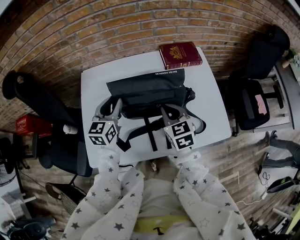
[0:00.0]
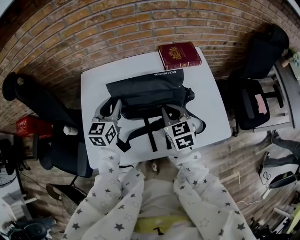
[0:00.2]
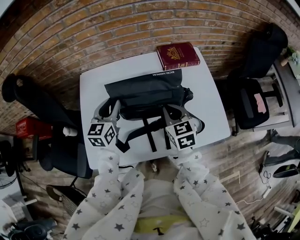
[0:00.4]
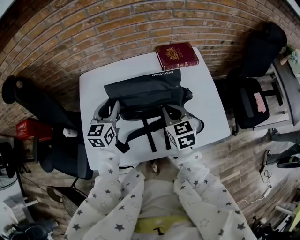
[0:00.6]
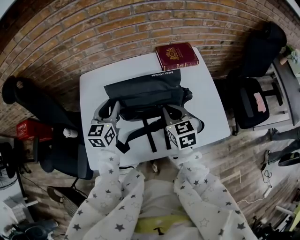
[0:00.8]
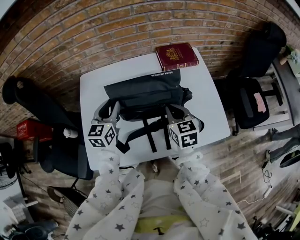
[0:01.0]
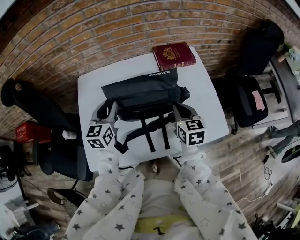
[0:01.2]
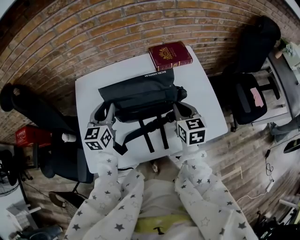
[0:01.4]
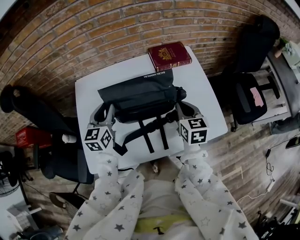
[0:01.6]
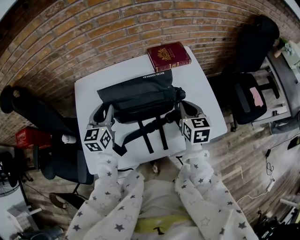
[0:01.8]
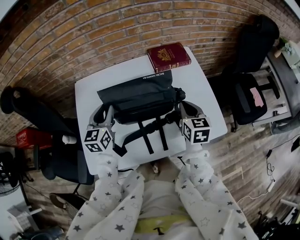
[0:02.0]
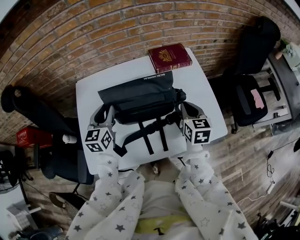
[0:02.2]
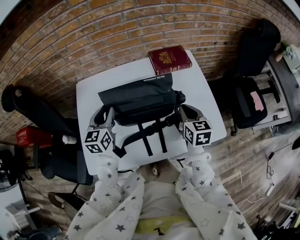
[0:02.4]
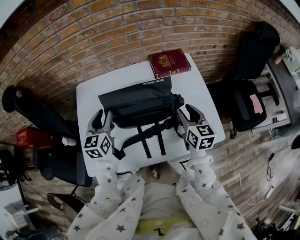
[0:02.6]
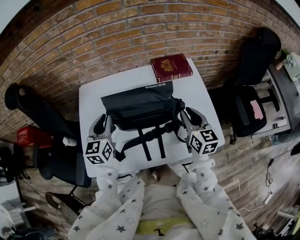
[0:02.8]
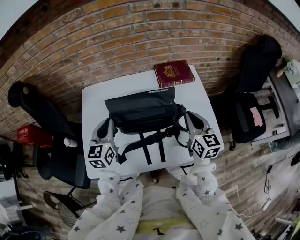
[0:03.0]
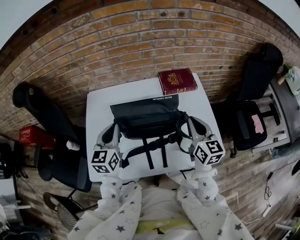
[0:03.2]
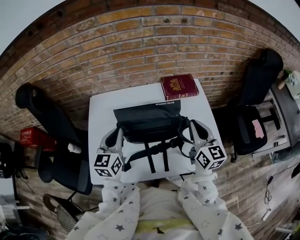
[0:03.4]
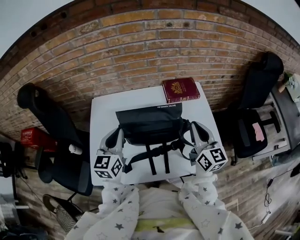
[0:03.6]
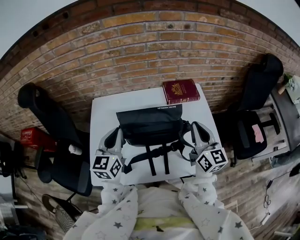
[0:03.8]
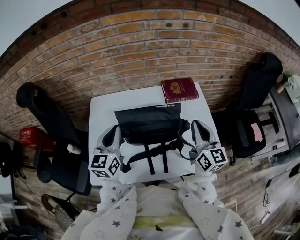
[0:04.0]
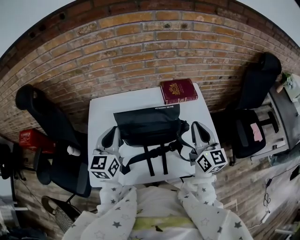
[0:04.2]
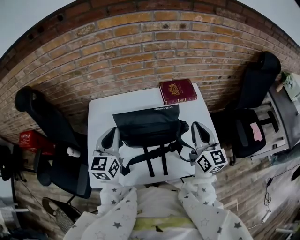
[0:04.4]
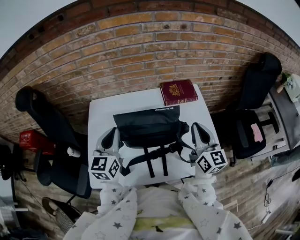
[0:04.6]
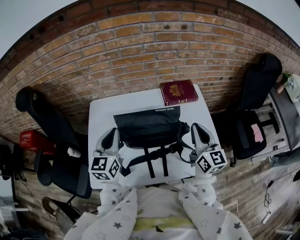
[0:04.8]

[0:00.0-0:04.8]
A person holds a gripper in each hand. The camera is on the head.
0:00.0 to 0:01.6: The right gripper goes roughly 10 cm to the right.
0:01.6 to 0:03.2: The left gripper shifts about 5 cm upward, and closes up, while the right gripper travels upward by about 10 cm, swivels some 20 degrees, and opens, then closes again.
0:03.2 to 0:04.8: There are only small adjustments of the grippers.

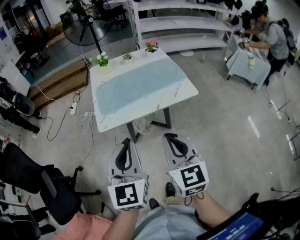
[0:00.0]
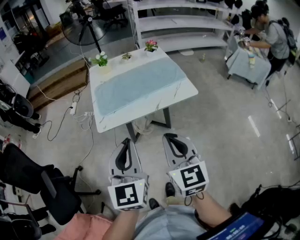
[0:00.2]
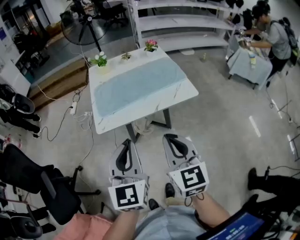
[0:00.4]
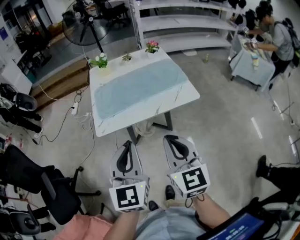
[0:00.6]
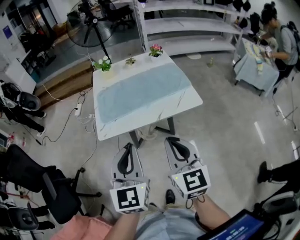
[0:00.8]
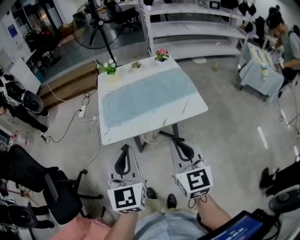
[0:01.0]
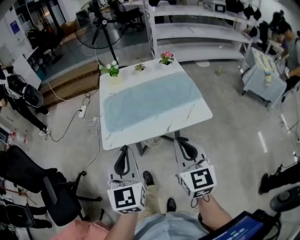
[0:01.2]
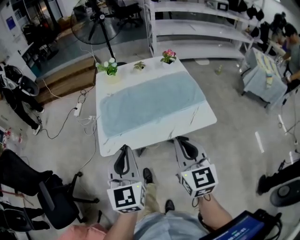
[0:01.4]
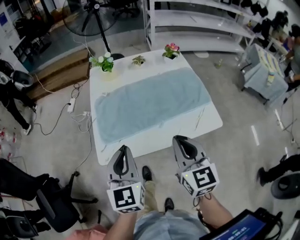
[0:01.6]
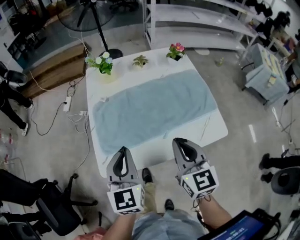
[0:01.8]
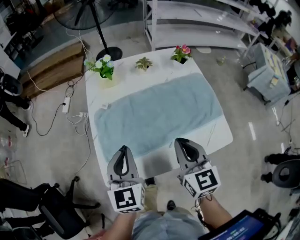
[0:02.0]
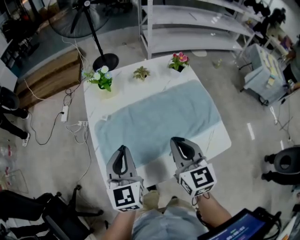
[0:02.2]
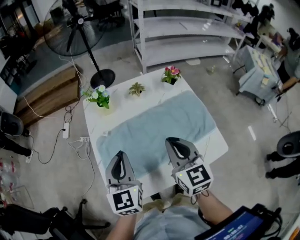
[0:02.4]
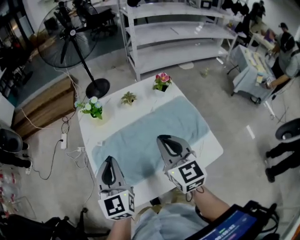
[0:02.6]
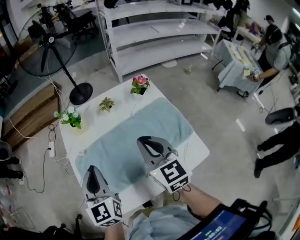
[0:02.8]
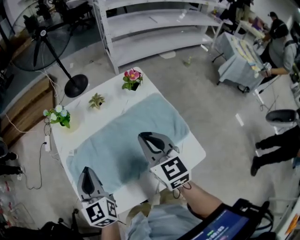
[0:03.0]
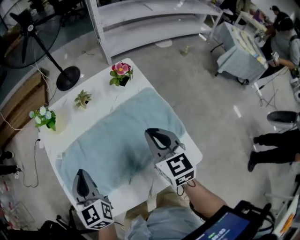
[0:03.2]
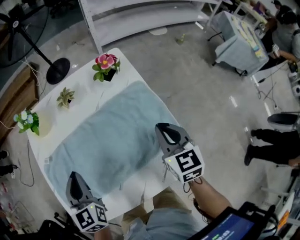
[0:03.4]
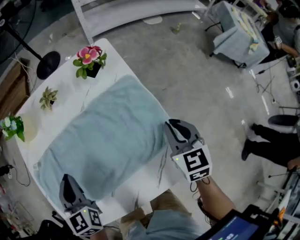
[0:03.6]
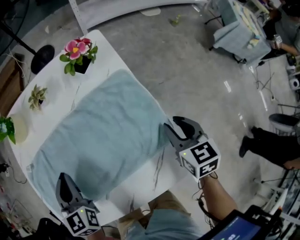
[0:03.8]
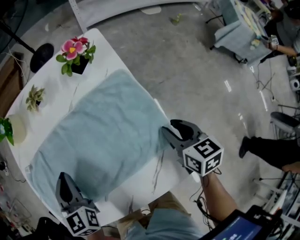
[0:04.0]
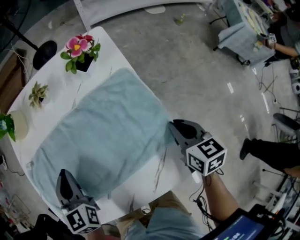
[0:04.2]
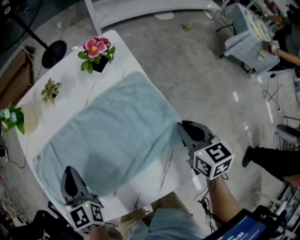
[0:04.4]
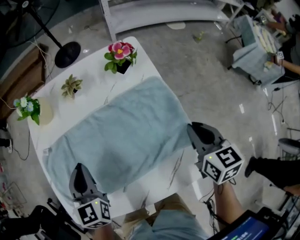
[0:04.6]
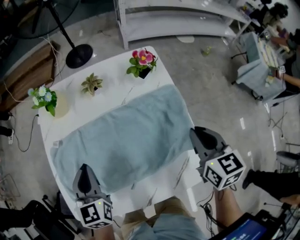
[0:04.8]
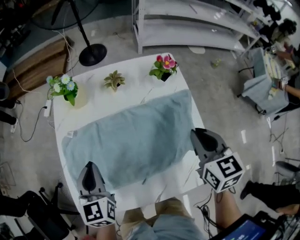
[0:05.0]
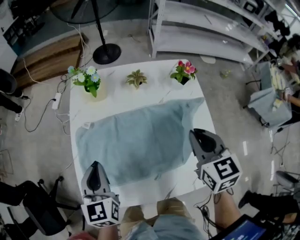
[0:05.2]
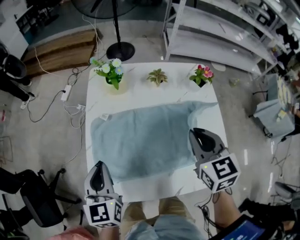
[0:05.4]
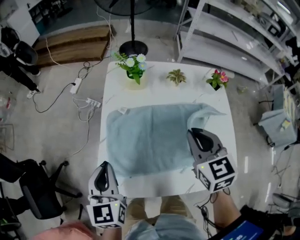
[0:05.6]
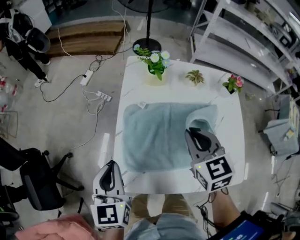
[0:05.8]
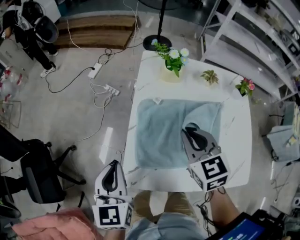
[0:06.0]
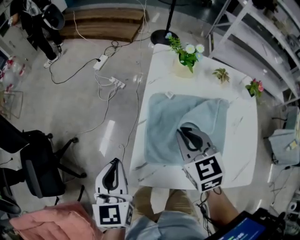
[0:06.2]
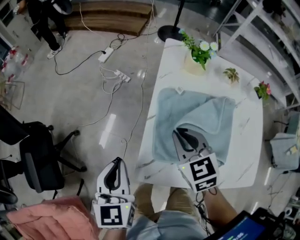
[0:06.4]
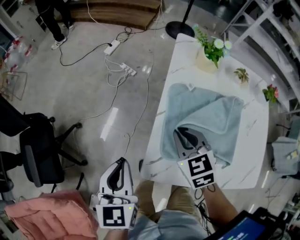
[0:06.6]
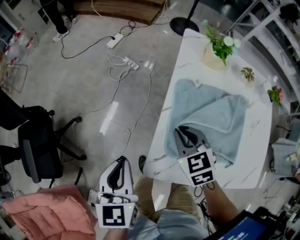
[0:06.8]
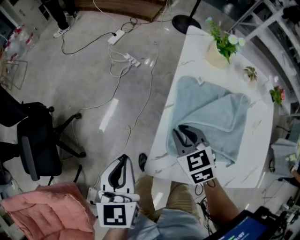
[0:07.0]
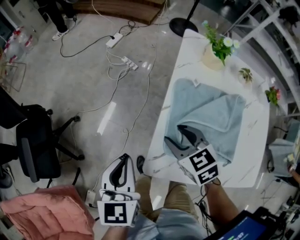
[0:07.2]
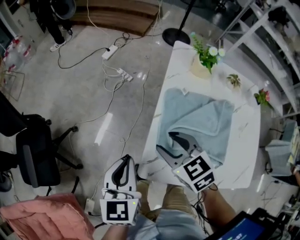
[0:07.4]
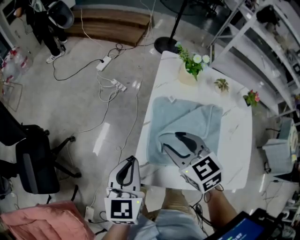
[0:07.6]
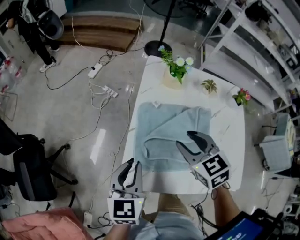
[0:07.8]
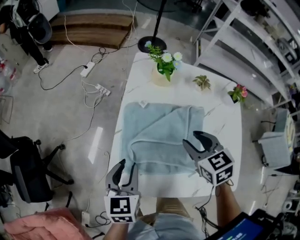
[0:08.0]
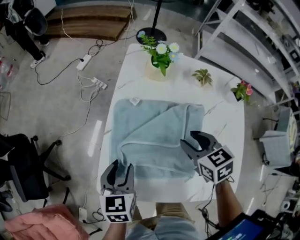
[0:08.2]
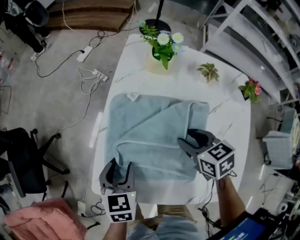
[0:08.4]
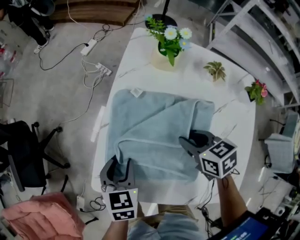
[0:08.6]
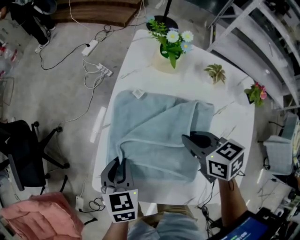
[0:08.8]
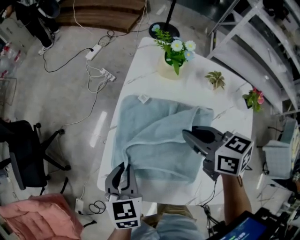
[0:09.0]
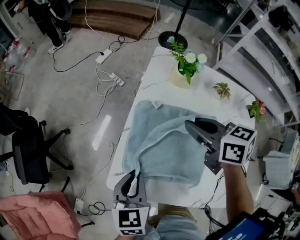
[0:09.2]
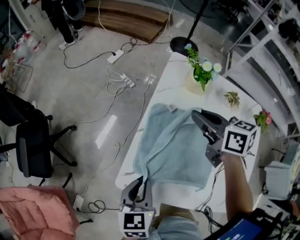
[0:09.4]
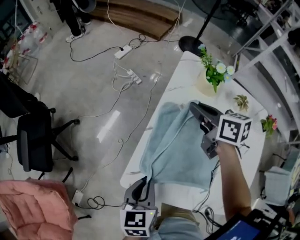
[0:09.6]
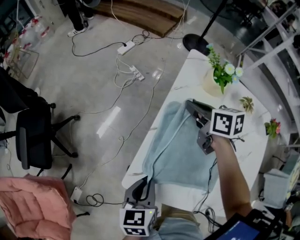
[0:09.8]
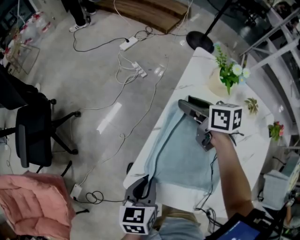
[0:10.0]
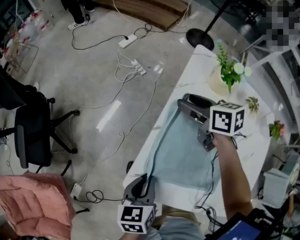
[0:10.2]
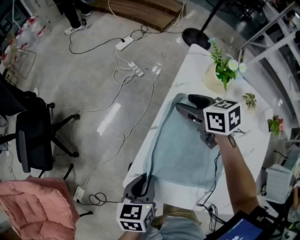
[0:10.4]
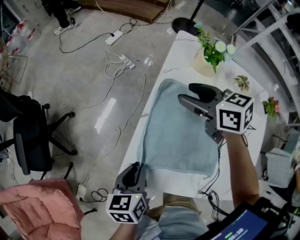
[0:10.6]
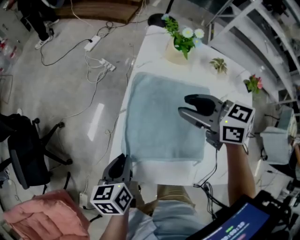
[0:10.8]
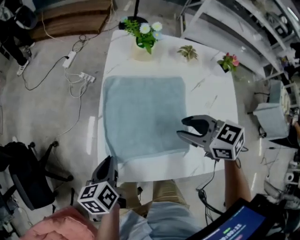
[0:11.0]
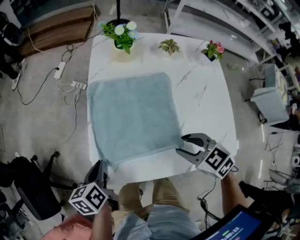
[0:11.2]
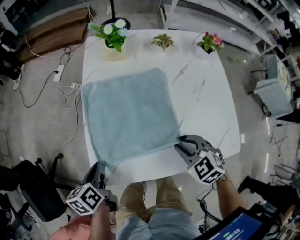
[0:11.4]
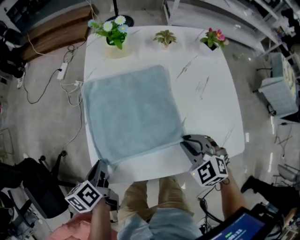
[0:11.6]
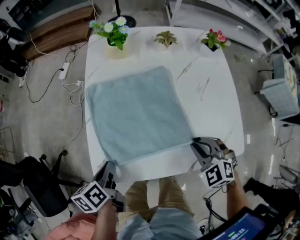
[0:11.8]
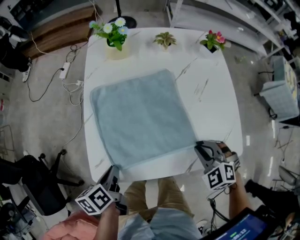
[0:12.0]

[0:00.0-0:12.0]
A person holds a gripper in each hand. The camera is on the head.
0:00.0 to 0:01.6: The grippers both shift forward by approximately 25 cm.
0:01.6 to 0:03.0: The grippers both shift forward by approximately 25 cm.
0:03.0 to 0:04.4: The left gripper travels downward, to the right and forward by some 15 cm. The right gripper is displaced to the right and downward by about 30 cm, rotates approximately 30 degrees, and opens and closes again.
0:04.4 to 0:06.0: The left gripper is displaced to the left by roughly 35 cm, and changes its angle by about 20 degrees. The right gripper goes some 50 cm to the left, and turns by some 40 degrees.
0:06.0 to 0:07.6: The right gripper moves to the left, roughly 10 cm, and opens up. Meanwhile the left gripper reaches some 10 cm to the left, then returns.
0:07.6 to 0:09.0: The right gripper goes some 15 cm to the right, changes its angle by roughly 30 degrees, and closes its fingers. Meanwhile the left gripper moves to the right and downward, approximately 15 cm, rotates roughly 20 degrees, and opens, then closes once more.
0:09.0 to 0:10.4: The right gripper goes about 20 cm forward and to the left, and opens its fingers. The left gripper moves to the left, about 5 cm, and changes its angle by some 20 degrees.
0:10.4 to 0:12.0: The right gripper goes upward and returns, some 10 cm each way, turns by approximately 50 degrees, and closes.

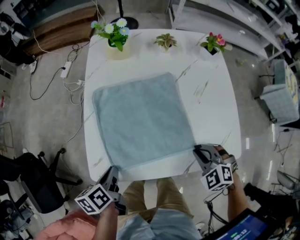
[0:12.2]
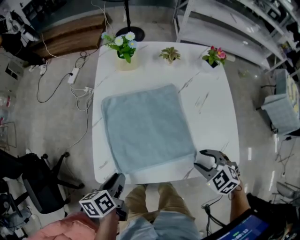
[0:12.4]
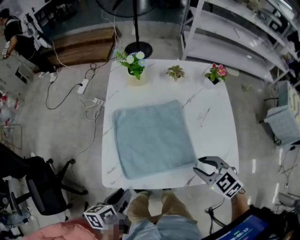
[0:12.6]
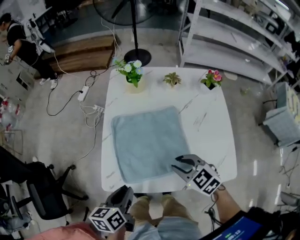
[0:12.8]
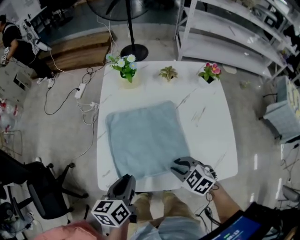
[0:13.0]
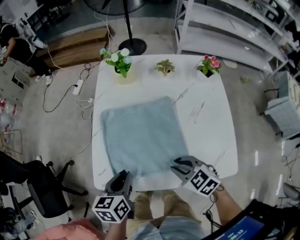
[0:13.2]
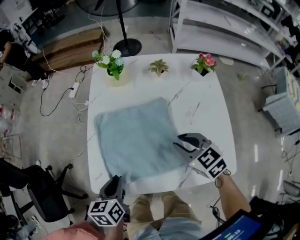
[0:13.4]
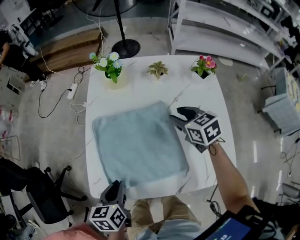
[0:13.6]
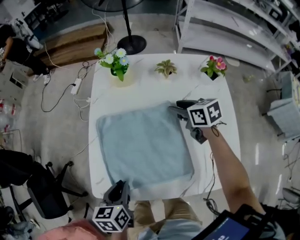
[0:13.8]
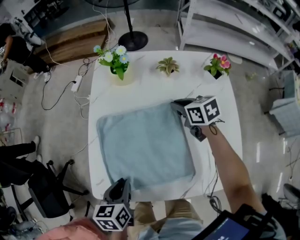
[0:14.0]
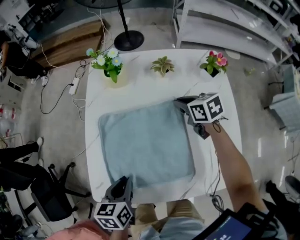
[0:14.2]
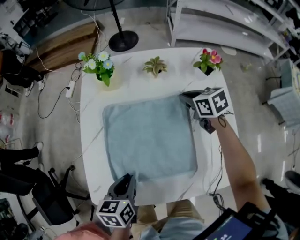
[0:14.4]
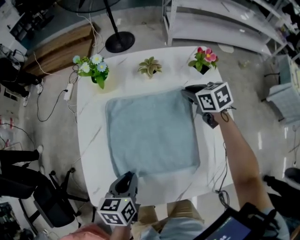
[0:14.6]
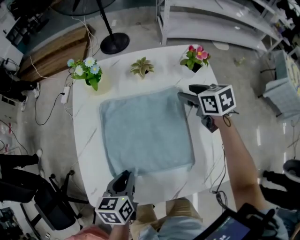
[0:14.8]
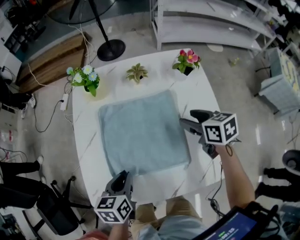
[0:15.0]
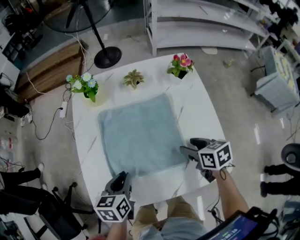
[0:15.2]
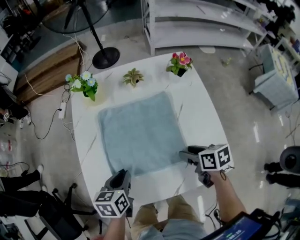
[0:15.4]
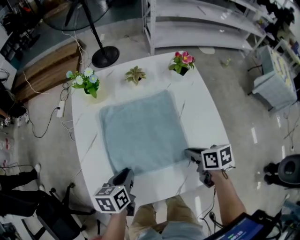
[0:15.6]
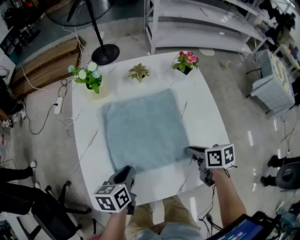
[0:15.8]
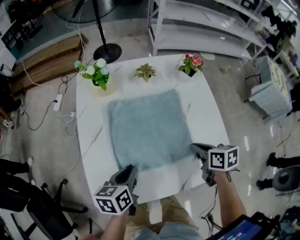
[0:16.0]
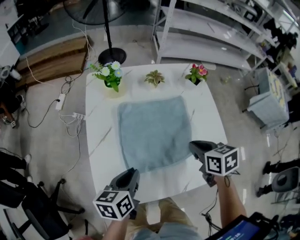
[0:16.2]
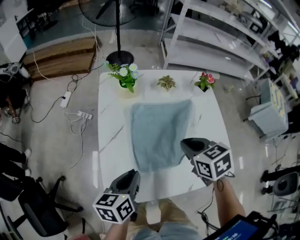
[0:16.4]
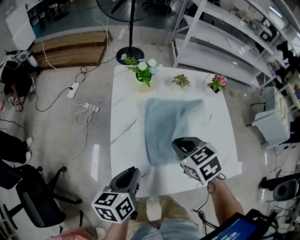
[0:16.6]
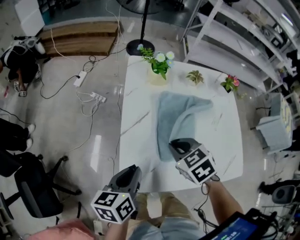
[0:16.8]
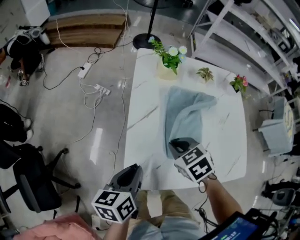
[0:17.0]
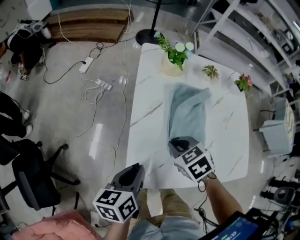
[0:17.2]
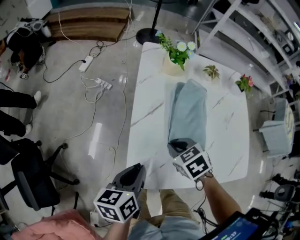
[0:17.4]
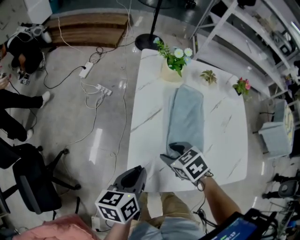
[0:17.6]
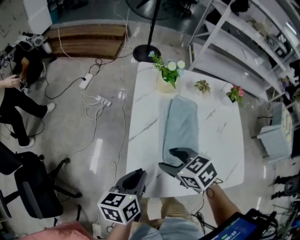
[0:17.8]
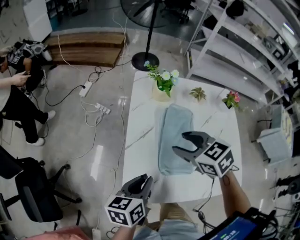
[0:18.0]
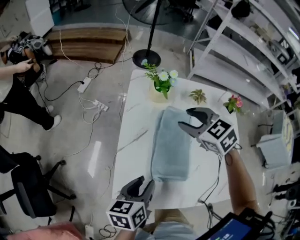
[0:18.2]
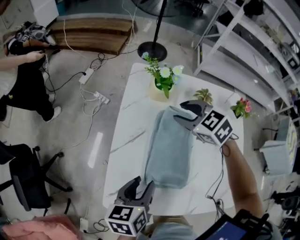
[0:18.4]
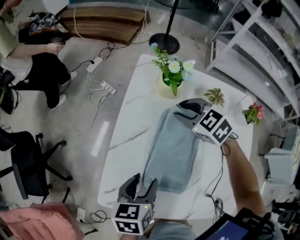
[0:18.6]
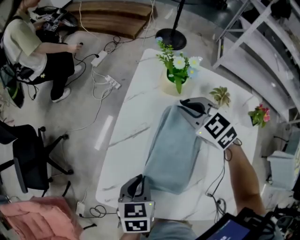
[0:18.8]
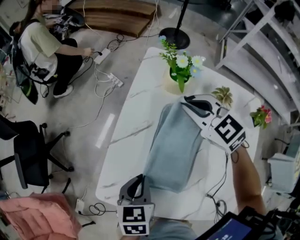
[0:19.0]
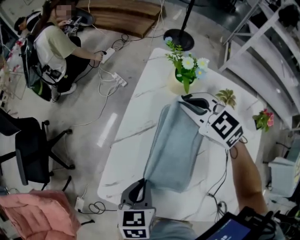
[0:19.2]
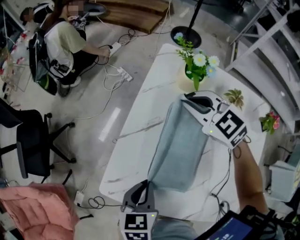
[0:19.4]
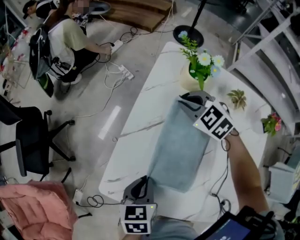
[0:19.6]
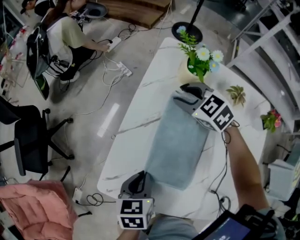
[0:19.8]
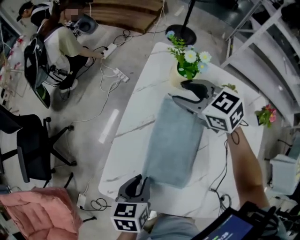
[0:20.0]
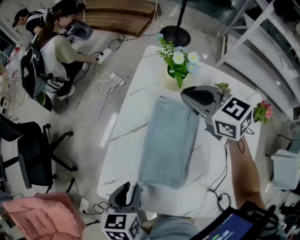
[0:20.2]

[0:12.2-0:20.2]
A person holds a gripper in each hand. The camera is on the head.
0:12.2 to 0:13.8: The right gripper shifts roughly 30 cm forward, rotates around the line of its fingers by about 50 degrees, clockwise from behind, and opens. The left gripper travels to the right by roughly 5 cm, changes its angle by approximately 20 degrees, and opens, then closes once more.
0:13.8 to 0:15.4: The left gripper is displaced to the right and forward by approximately 10 cm, while the right gripper shifts approximately 20 cm backward, rotates roughly 30 degrees, and closes and opens again.
0:15.4 to 0:17.0: The right gripper is displaced to the left by roughly 30 cm, rotates around the line of its fingers by roughly 50 degrees, counterclockwise from behind, and closes up, while the left gripper is displaced to the left by approximately 15 cm, and changes its angle by approximately 30 degrees.
0:17.0 to 0:18.6: The right gripper heads forward, covering some 25 cm, rotates roughly 30 degrees, and opens. The left gripper goes some 15 cm to the right and forward, and opens.
0:18.6 to 0:20.2: The right gripper moves up and down over about 10 cm, changing direction 2 times, rotates approximately 20 degrees, and closes, while the left gripper heads to the left, covering roughly 5 cm, and closes up.
